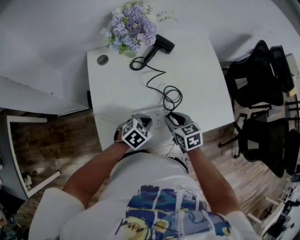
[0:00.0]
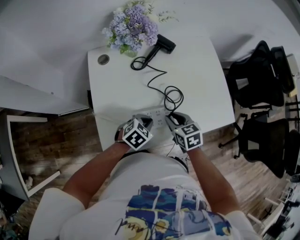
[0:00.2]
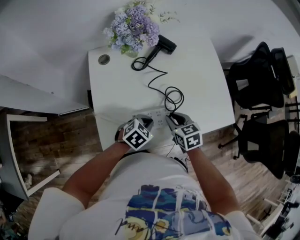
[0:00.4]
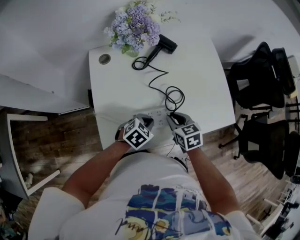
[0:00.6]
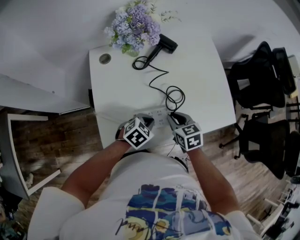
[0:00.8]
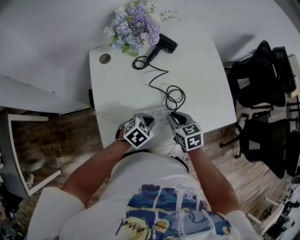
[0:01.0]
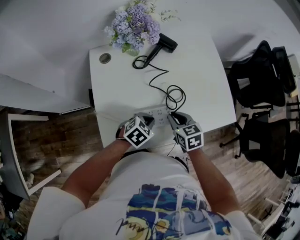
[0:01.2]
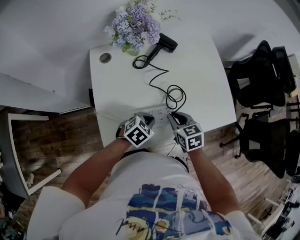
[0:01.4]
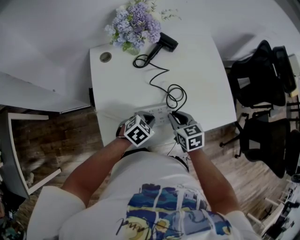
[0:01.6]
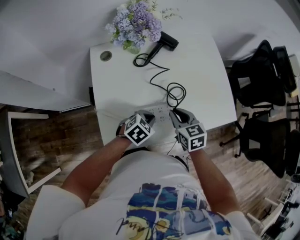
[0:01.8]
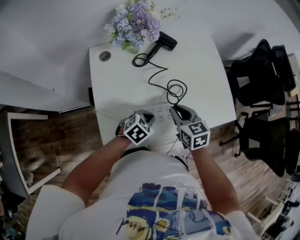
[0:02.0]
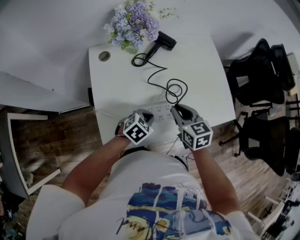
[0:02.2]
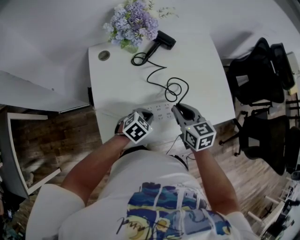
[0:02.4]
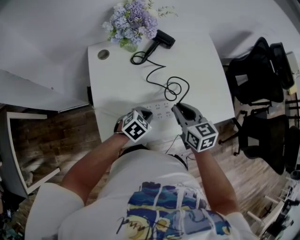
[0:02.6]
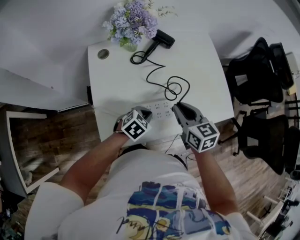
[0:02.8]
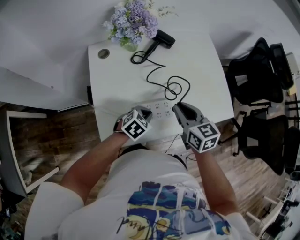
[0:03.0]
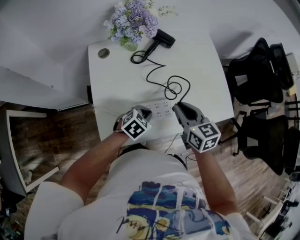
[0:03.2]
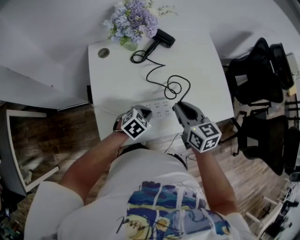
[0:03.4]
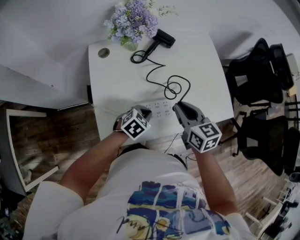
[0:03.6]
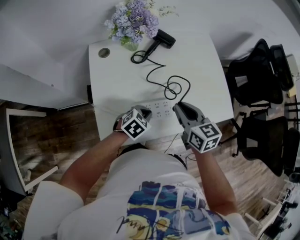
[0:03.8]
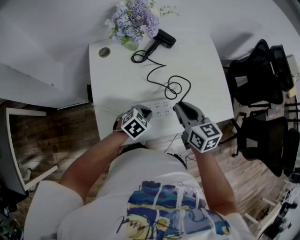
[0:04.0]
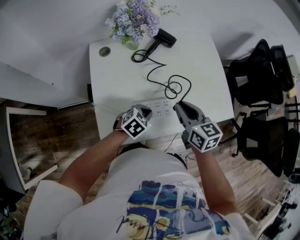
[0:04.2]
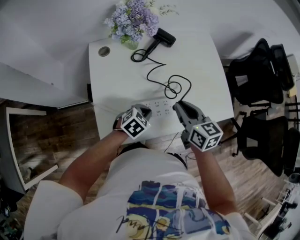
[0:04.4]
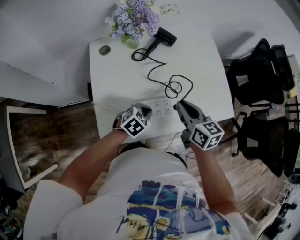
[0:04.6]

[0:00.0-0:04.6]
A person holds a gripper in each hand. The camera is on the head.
0:00.0 to 0:01.6: Neither gripper changes place.
0:01.6 to 0:03.0: The right gripper is displaced upward by approximately 10 cm.
0:03.0 to 0:04.6: The grippers move only a little.

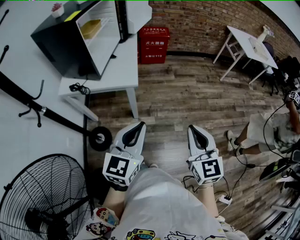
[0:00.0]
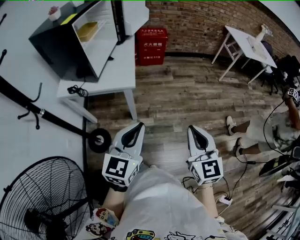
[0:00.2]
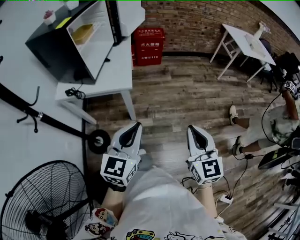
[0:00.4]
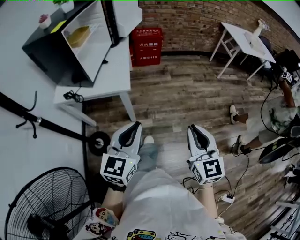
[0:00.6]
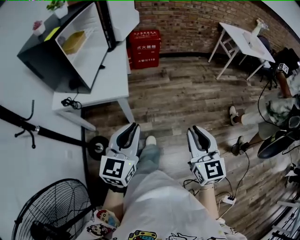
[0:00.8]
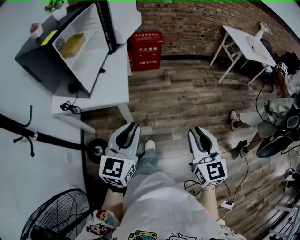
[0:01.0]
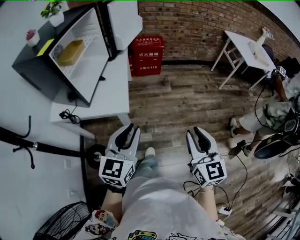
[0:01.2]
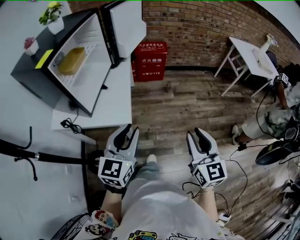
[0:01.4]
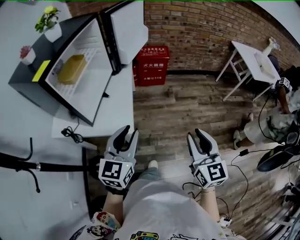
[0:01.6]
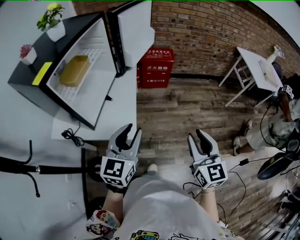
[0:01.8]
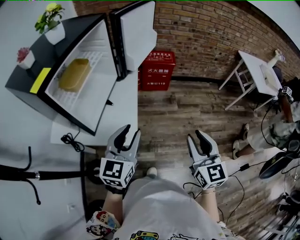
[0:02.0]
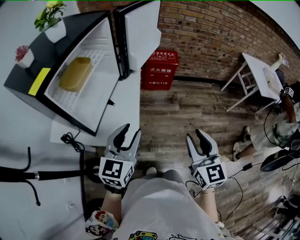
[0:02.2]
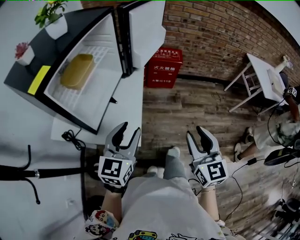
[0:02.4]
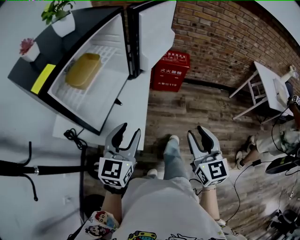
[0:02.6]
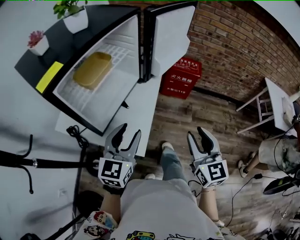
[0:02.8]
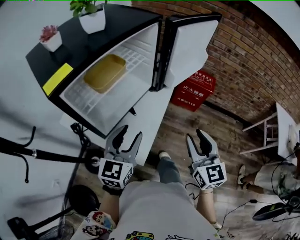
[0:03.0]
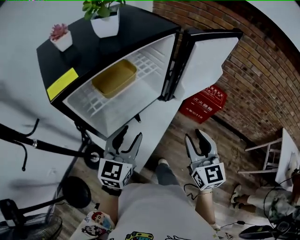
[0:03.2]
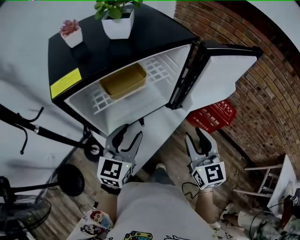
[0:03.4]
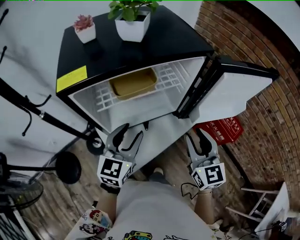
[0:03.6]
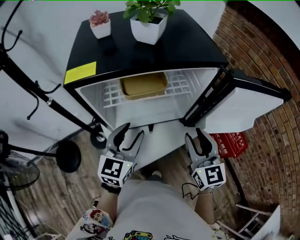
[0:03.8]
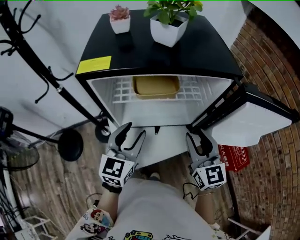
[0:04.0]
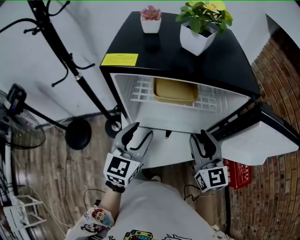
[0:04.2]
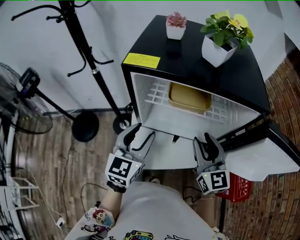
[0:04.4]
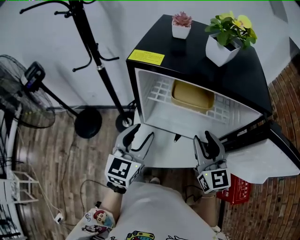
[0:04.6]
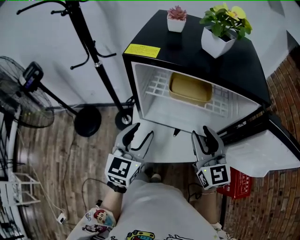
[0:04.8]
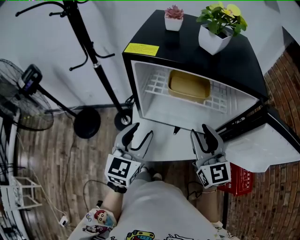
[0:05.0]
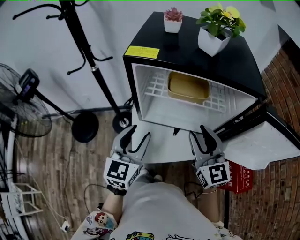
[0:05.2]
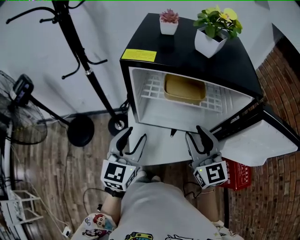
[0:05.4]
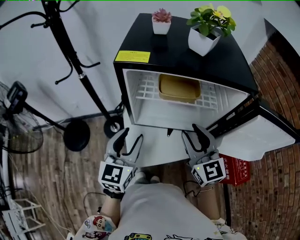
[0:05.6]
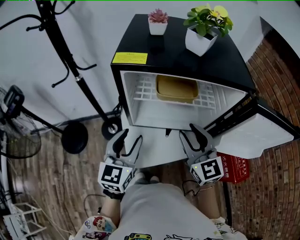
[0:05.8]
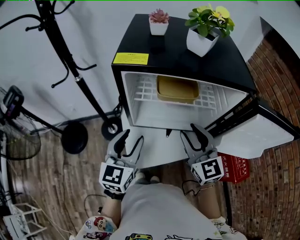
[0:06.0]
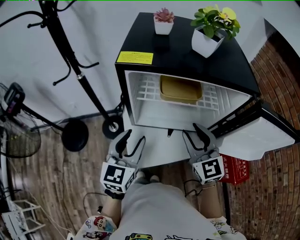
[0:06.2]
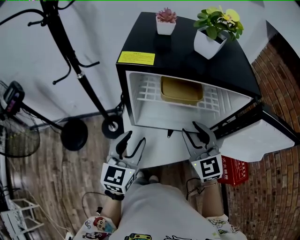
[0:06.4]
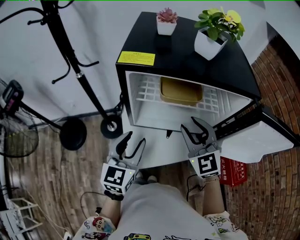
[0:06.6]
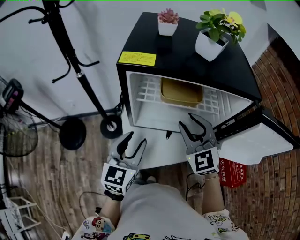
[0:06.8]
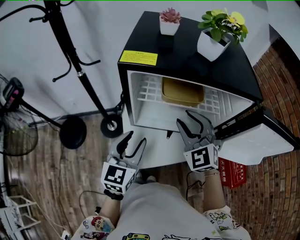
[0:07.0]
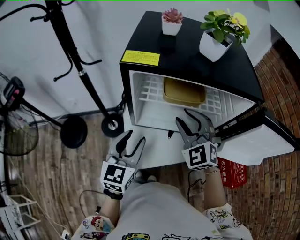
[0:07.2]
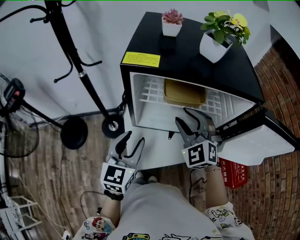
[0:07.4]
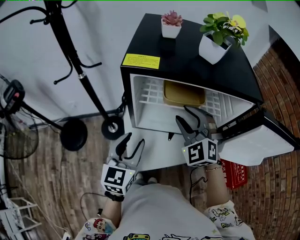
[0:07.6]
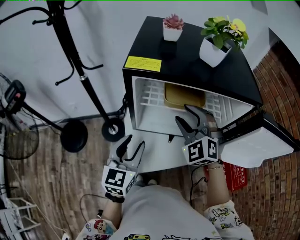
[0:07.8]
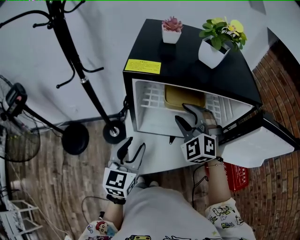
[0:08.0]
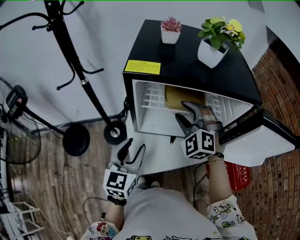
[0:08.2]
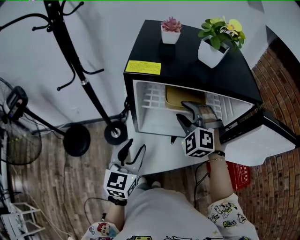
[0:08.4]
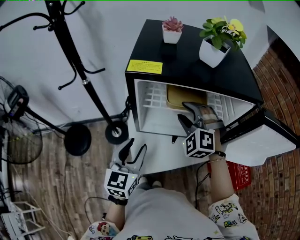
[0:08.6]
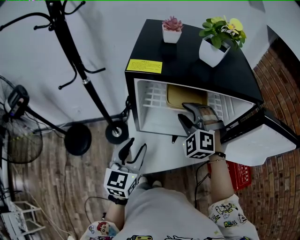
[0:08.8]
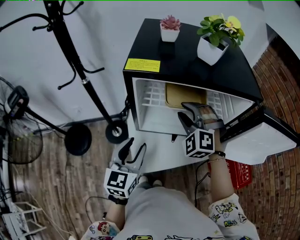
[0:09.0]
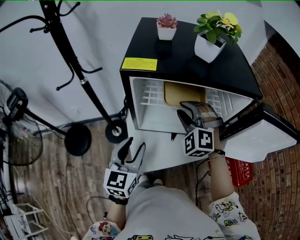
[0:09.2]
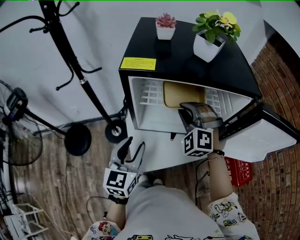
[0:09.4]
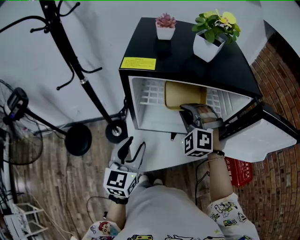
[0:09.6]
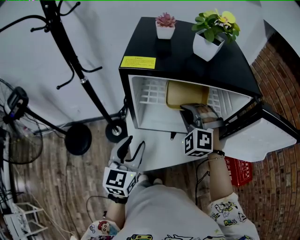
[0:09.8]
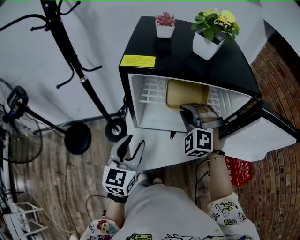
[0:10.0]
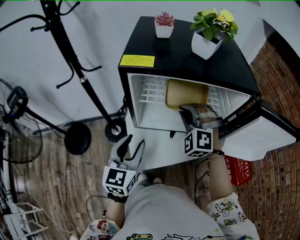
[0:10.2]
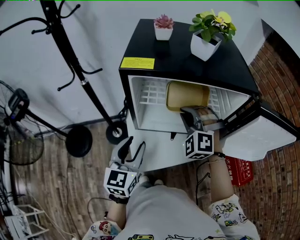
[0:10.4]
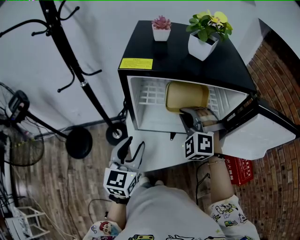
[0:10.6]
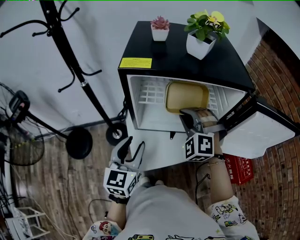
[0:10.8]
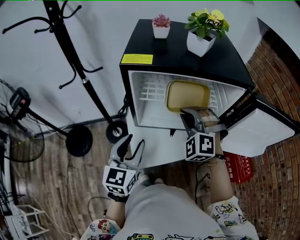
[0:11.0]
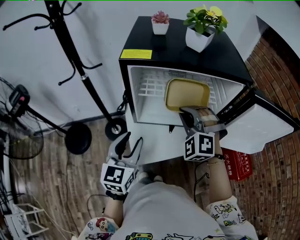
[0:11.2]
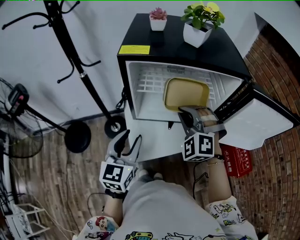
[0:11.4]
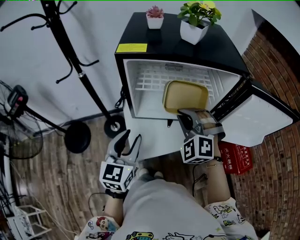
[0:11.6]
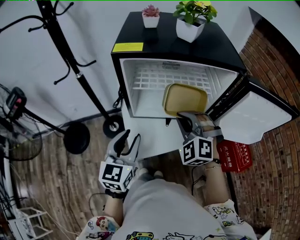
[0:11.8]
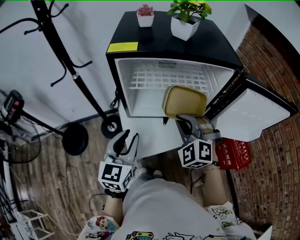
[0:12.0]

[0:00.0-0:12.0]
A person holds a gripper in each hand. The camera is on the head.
0:00.0 to 0:01.6: Both grippers travel together forward, some 25 cm. The right gripper opens; the left gripper opens.
0:01.6 to 0:03.0: The left gripper goes approximately 20 cm forward and to the left, changes its angle by about 20 degrees, and opens its fingers; the right gripper goes roughly 25 cm forward, and turns by roughly 30 degrees.
0:03.0 to 0:04.4: The right gripper moves some 25 cm, and swivels some 60 degrees, while the left gripper changes place by some 10 cm, and changes its angle by approximately 60 degrees.
0:04.4 to 0:06.0: The grippers stay close to where they were, moving slightly.
0:06.0 to 0:07.6: The right gripper goes some 10 cm forward, and rolls counterclockwise, seen from behind, by roughly 40 degrees.
0:07.6 to 0:09.0: There are only small adjustments of the grippers.
0:09.0 to 0:10.4: The right gripper closes.
0:10.4 to 0:12.0: The right gripper shifts about 10 cm backward.

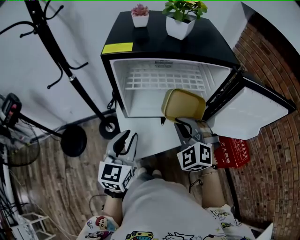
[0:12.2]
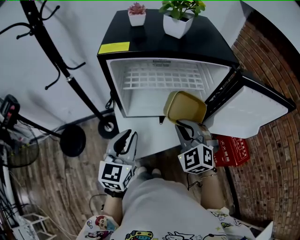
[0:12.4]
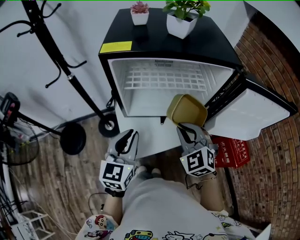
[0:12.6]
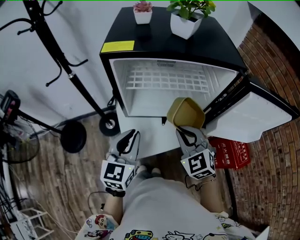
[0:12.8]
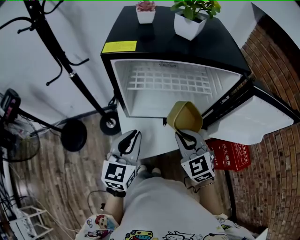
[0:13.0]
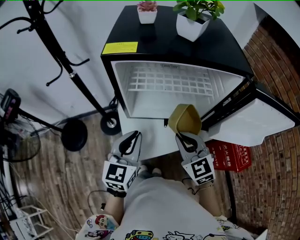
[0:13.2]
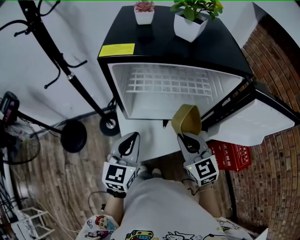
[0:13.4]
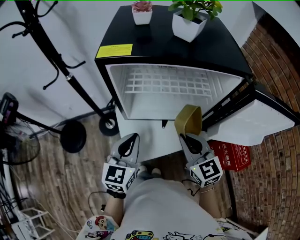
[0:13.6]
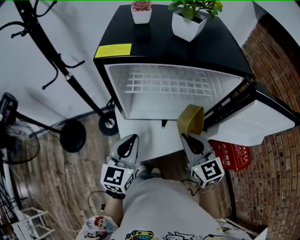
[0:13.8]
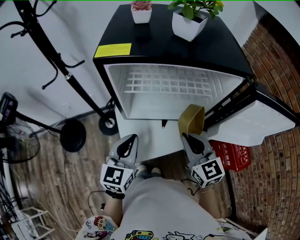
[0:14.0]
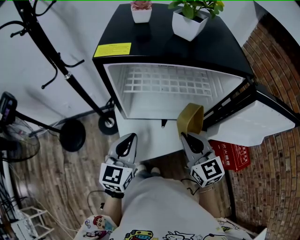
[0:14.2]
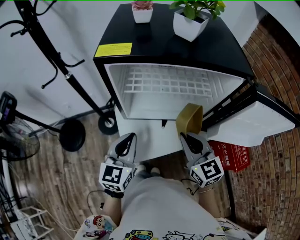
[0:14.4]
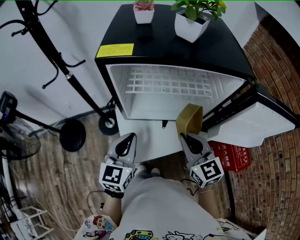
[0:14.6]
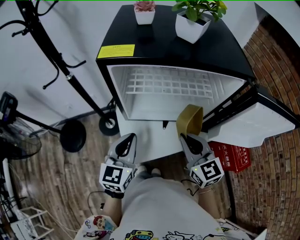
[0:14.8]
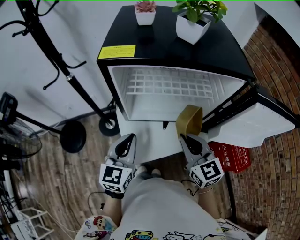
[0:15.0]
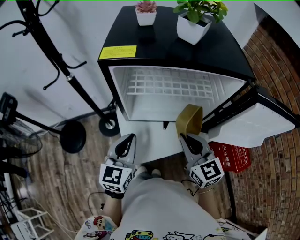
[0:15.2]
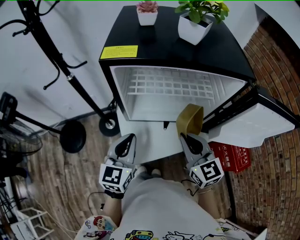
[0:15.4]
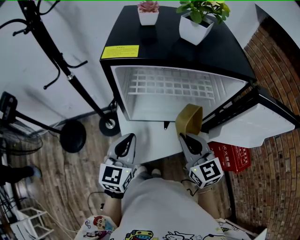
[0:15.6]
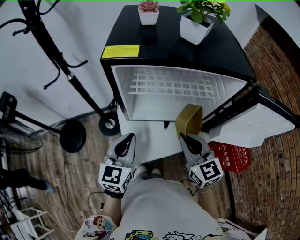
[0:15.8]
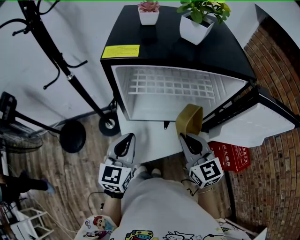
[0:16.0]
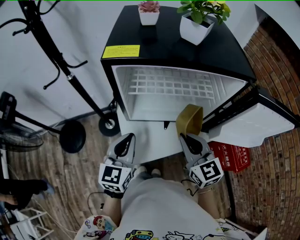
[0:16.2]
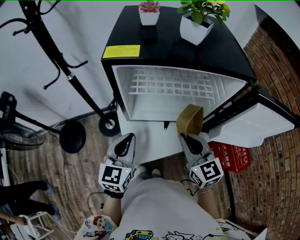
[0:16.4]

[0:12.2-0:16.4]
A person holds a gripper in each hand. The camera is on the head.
0:12.2 to 0:13.6: The left gripper closes up; the right gripper rotates around the line of its fingers by roughly 50 degrees, clockwise from behind.
0:13.6 to 0:15.0: The grippers move only a little.
0:15.0 to 0:16.4: The two grippers keep their place.

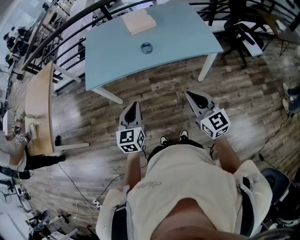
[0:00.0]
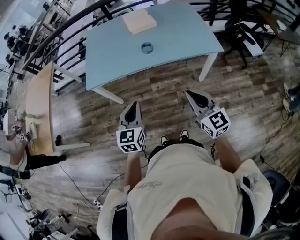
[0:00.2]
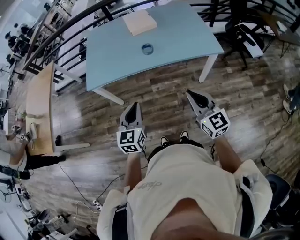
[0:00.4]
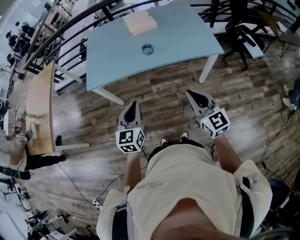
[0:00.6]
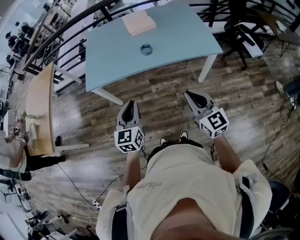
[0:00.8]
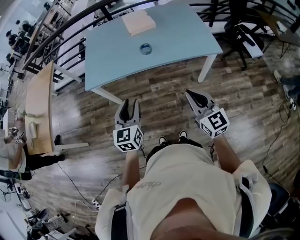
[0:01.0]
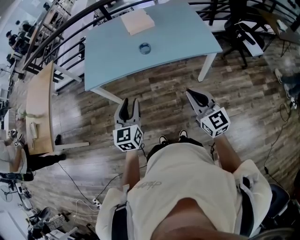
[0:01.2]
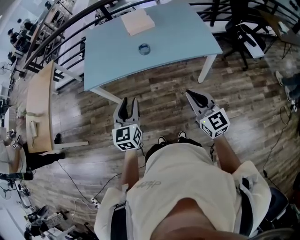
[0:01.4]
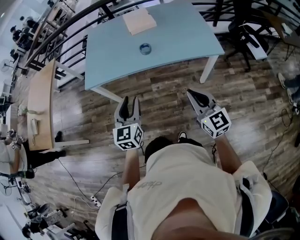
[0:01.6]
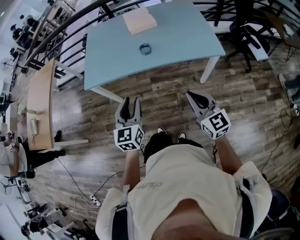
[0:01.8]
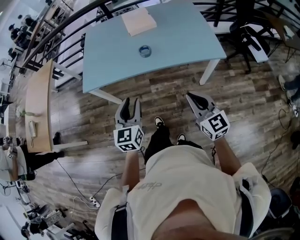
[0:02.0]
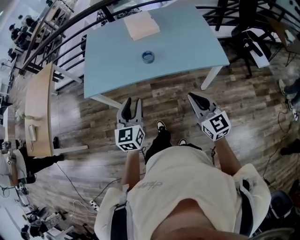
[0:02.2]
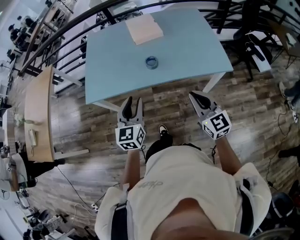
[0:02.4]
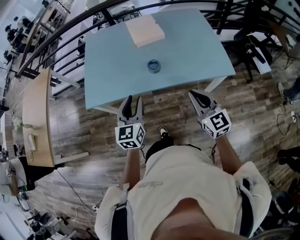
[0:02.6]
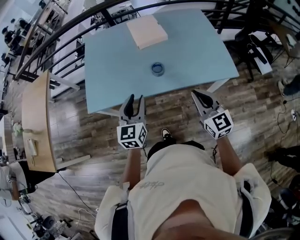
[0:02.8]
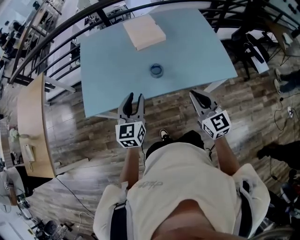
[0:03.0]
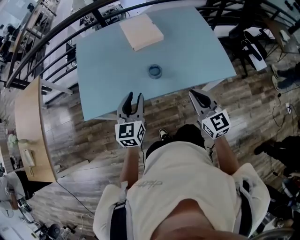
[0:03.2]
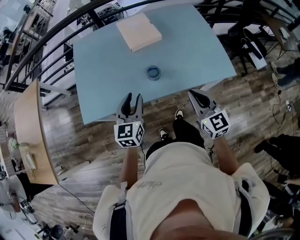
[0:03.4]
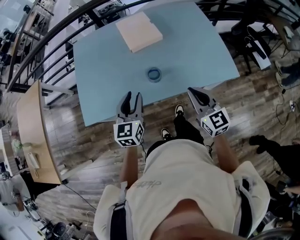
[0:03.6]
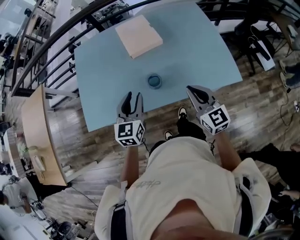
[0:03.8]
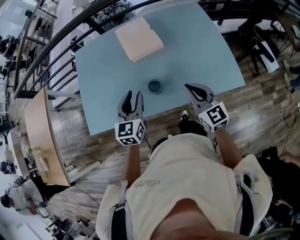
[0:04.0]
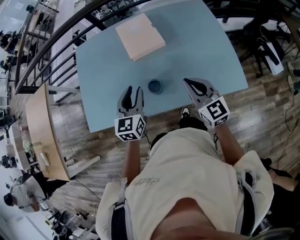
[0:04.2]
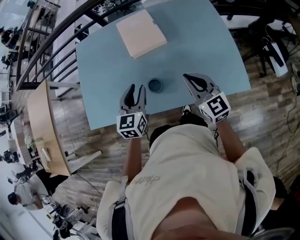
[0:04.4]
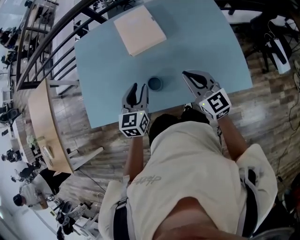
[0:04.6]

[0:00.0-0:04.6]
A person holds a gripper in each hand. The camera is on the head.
0:00.0 to 0:01.6: The right gripper shifts roughly 5 cm to the right. Meanwhile the left gripper ends up roughly 5 cm from where it was, and opens up.
0:01.6 to 0:03.0: The grippers both shift forward by approximately 25 cm.
0:03.0 to 0:04.6: The left gripper travels forward and to the right by about 20 cm; the right gripper shifts about 25 cm forward.
